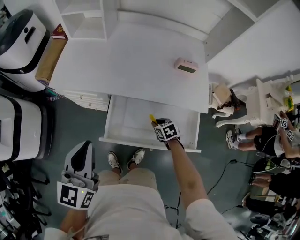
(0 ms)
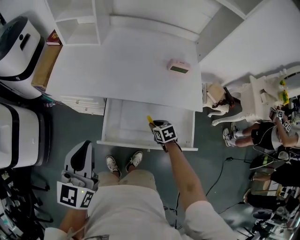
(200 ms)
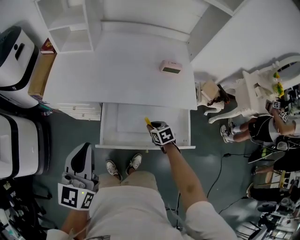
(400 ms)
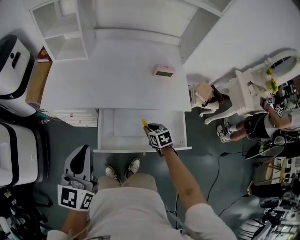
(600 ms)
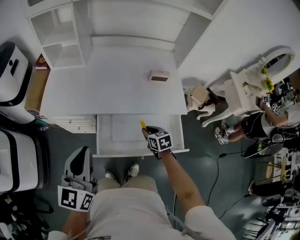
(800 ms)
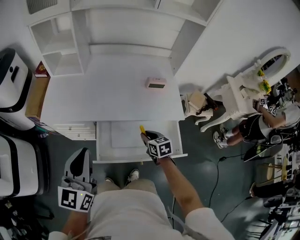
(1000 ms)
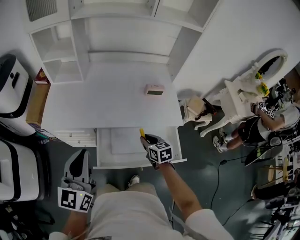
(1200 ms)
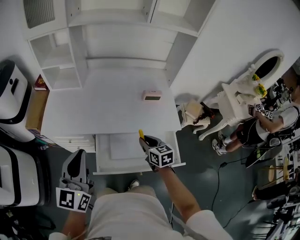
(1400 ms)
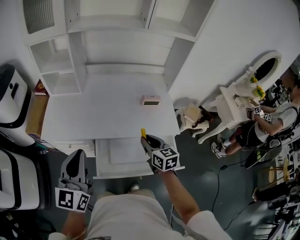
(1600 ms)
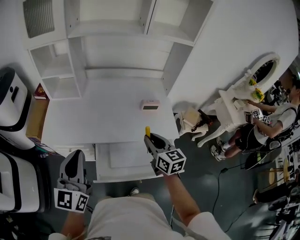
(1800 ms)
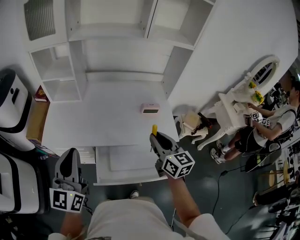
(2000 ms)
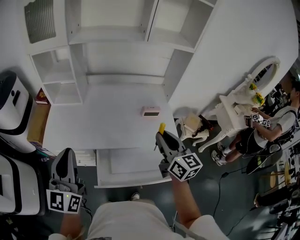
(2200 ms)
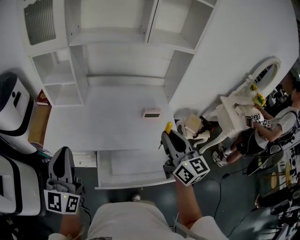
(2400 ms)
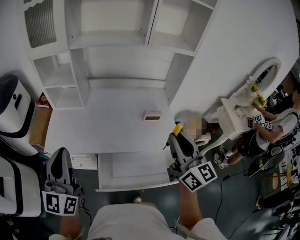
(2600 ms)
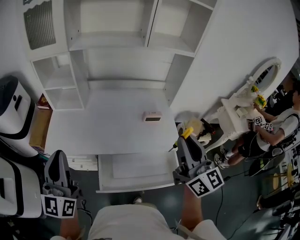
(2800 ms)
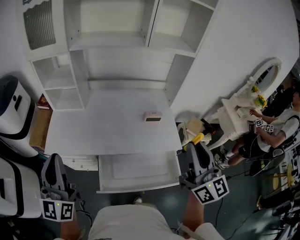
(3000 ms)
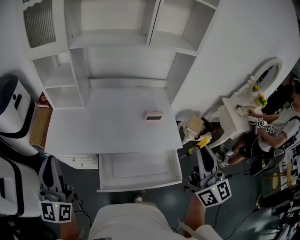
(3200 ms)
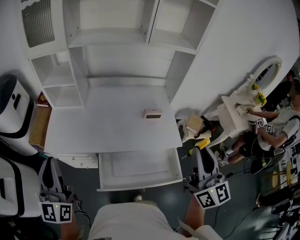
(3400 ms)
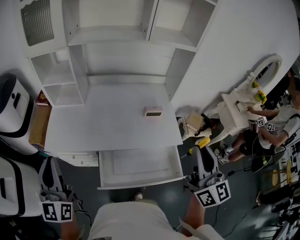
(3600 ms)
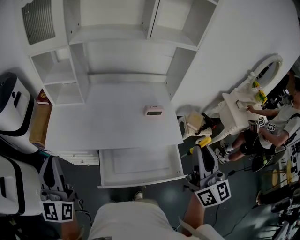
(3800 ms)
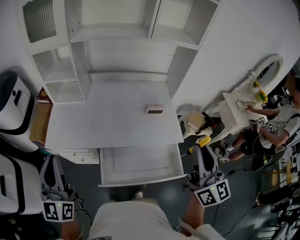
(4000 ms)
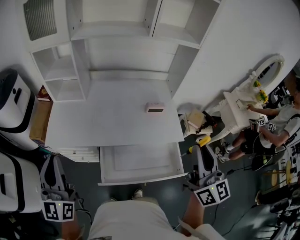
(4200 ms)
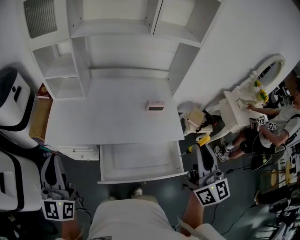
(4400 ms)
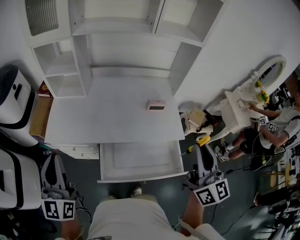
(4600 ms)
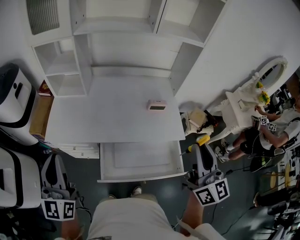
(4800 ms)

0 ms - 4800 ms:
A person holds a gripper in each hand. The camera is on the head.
0 ms - 1600 ms: The right gripper goes about 25 cm upward, and tips its fingers upward by roughly 40 degrees. Meanwhile the left gripper heads upward and forward, covering some 10 cm.
1600 ms - 3200 ms: The left gripper heads upward and to the left, covering roughly 10 cm. Meanwhile the right gripper moves upward, roughly 30 cm, and angles its fingers upward, by roughly 40 degrees.
3200 ms - 4800 ms: The grippers make only small movements.

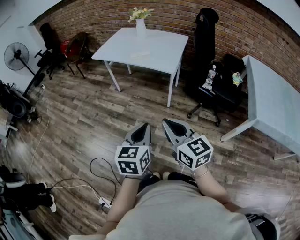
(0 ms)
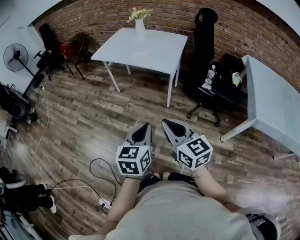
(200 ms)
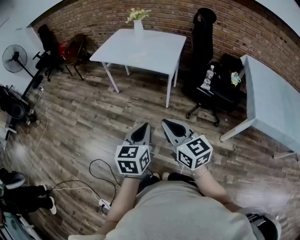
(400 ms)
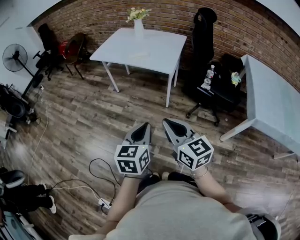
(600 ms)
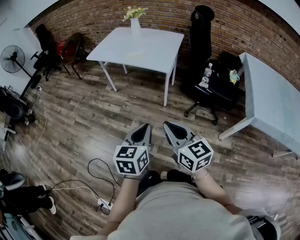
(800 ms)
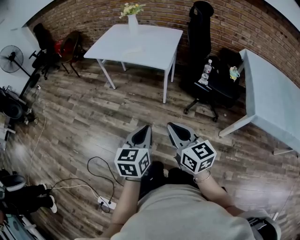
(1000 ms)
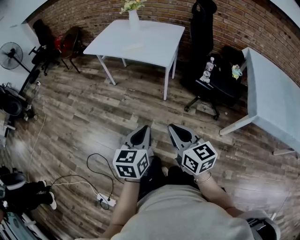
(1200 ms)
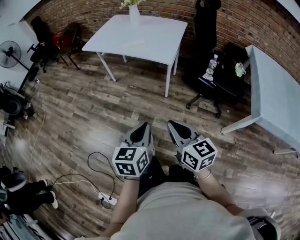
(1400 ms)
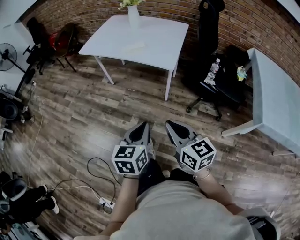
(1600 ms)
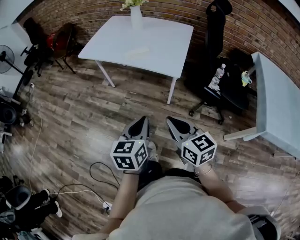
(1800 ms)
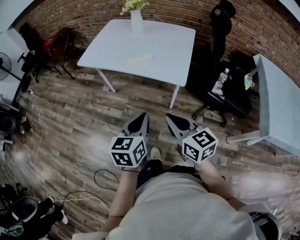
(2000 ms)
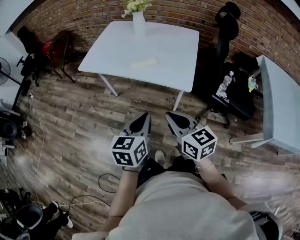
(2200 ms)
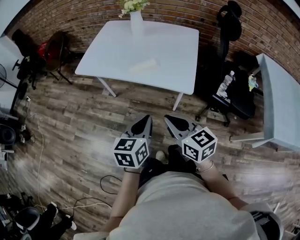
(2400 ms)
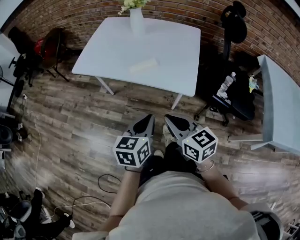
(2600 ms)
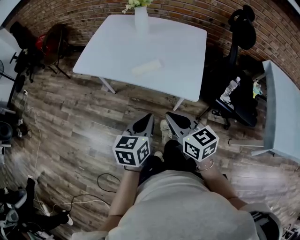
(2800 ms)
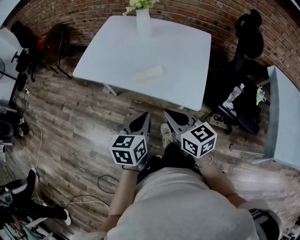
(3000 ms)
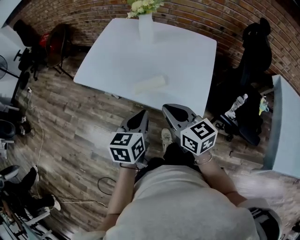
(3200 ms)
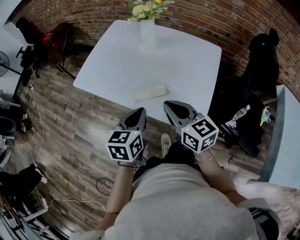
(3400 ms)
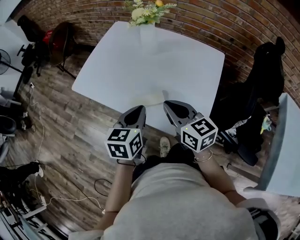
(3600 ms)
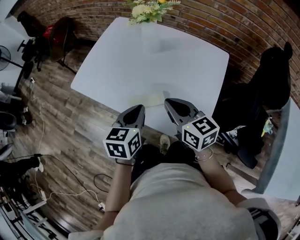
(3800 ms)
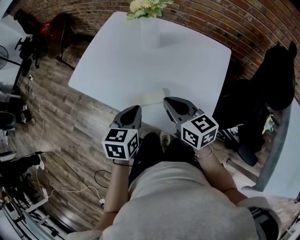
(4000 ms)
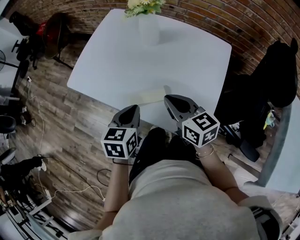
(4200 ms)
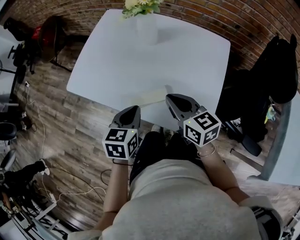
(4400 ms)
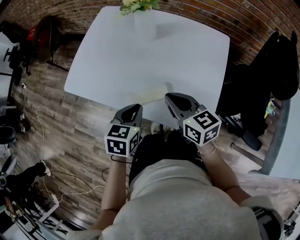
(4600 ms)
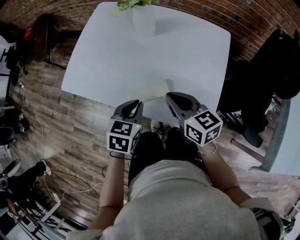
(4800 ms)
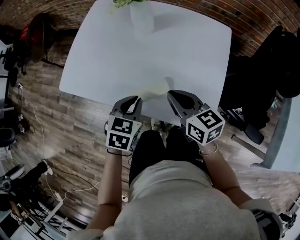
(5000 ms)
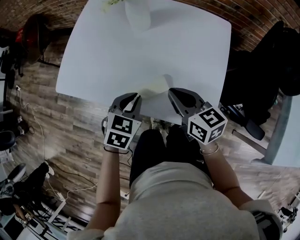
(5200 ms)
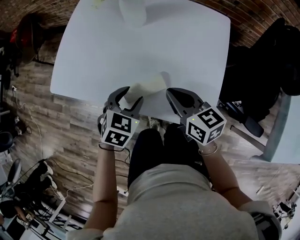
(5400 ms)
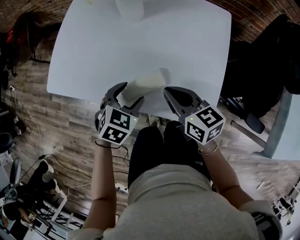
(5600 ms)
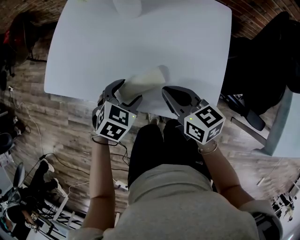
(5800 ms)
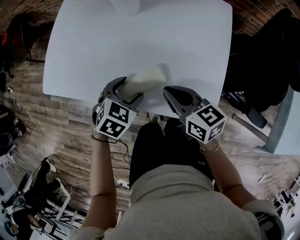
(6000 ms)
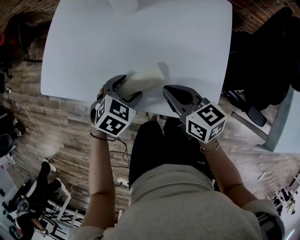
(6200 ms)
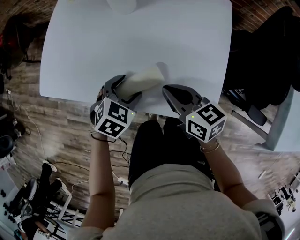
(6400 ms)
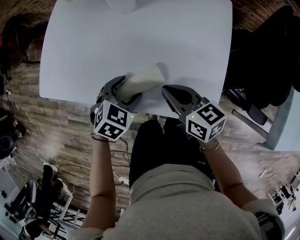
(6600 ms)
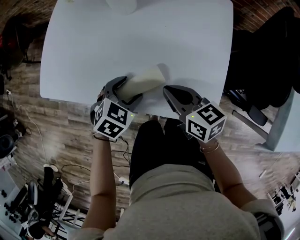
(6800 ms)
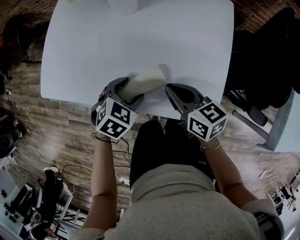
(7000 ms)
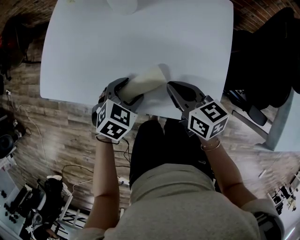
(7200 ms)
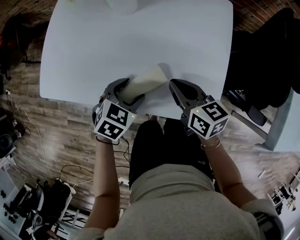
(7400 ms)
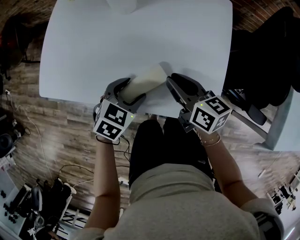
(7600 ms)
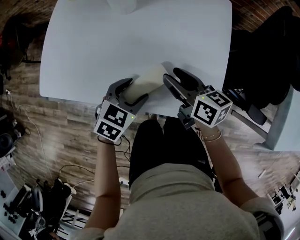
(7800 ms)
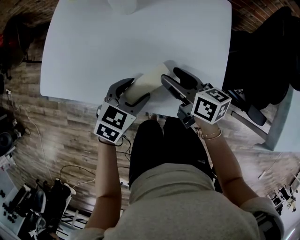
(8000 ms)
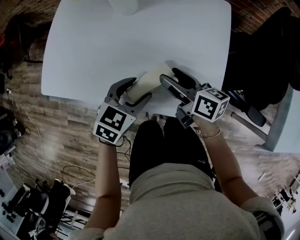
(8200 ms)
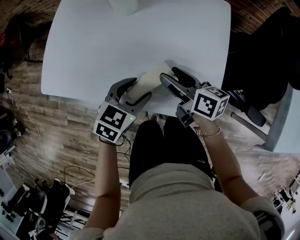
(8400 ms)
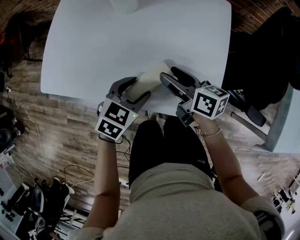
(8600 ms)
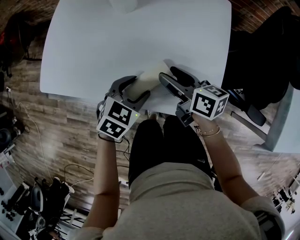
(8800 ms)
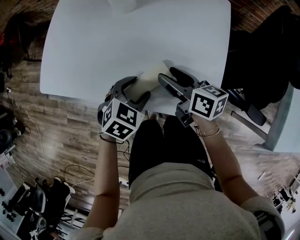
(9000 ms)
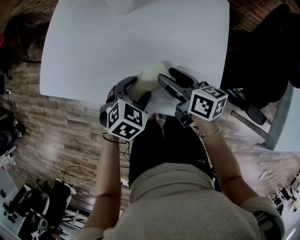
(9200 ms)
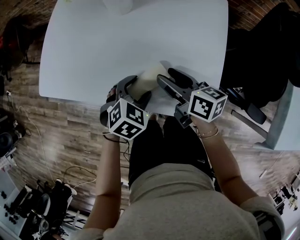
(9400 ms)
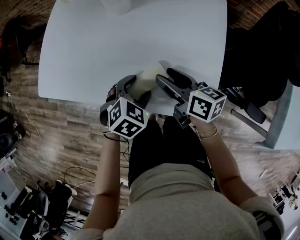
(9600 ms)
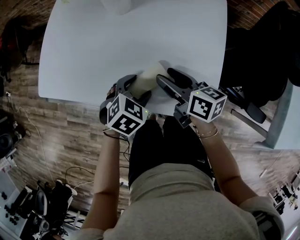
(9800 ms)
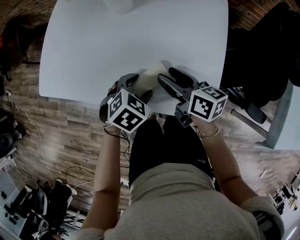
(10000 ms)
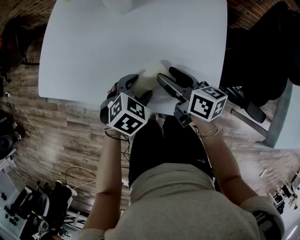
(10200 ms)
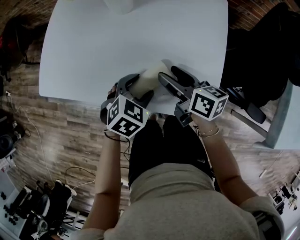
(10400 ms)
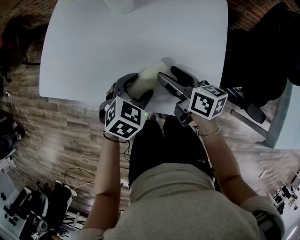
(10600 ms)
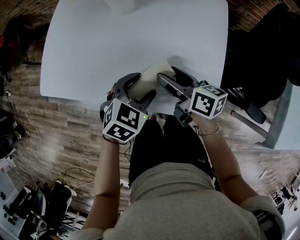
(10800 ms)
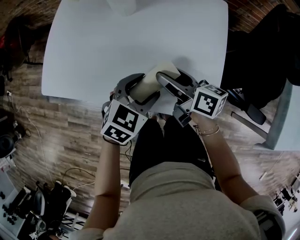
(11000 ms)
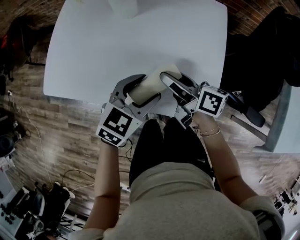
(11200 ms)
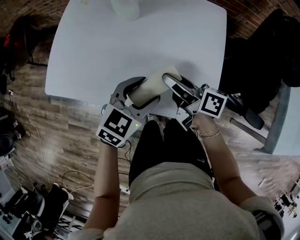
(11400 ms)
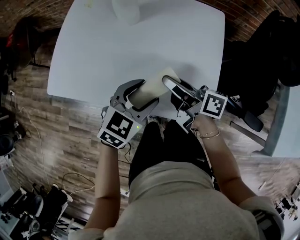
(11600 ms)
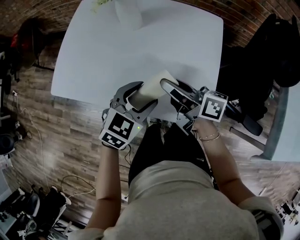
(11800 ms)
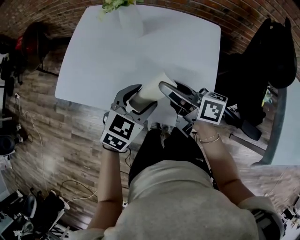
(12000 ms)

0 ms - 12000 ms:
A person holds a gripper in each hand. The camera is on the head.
0 ms - 1600 ms: Both grippers travel together forward and downward, roughly 15 cm.
1600 ms - 3000 ms: Both grippers travel together forward, some 40 cm.
3000 ms - 4400 ms: Both grippers move forward, some 20 cm.
4400 ms - 6000 ms: Both grippers move downward, approximately 10 cm. The left gripper turns by roughly 40 degrees, and opens its fingers.
6000 ms - 7600 ms: The grippers make only small movements.
7600 ms - 9000 ms: The right gripper opens.
9000 ms - 10400 ms: There are only small adjustments of the grippers.
10400 ms - 12000 ms: The grippers both shift upward by approximately 15 cm. The right gripper turns by approximately 20 degrees, and closes its fingers. The left gripper rotates roughly 20 degrees.

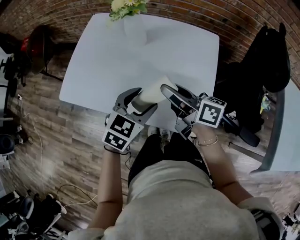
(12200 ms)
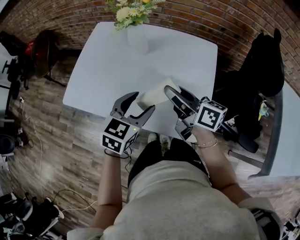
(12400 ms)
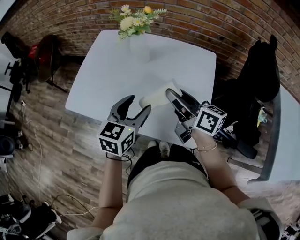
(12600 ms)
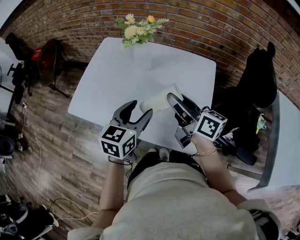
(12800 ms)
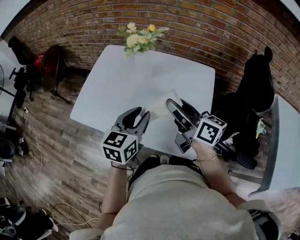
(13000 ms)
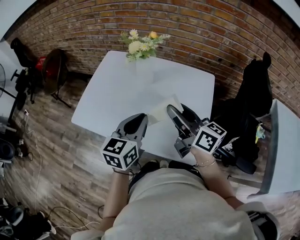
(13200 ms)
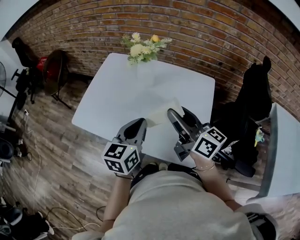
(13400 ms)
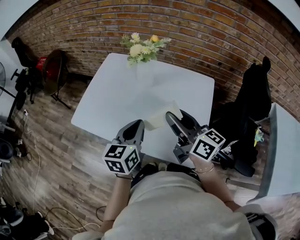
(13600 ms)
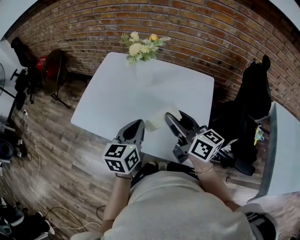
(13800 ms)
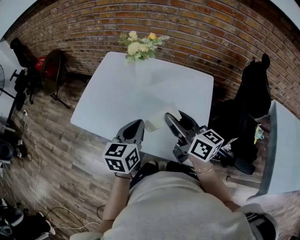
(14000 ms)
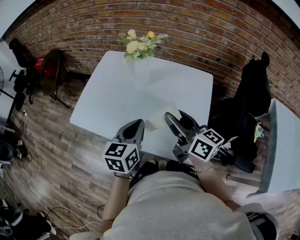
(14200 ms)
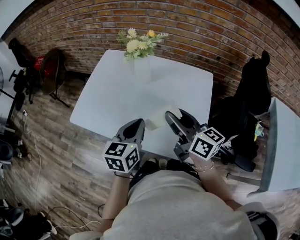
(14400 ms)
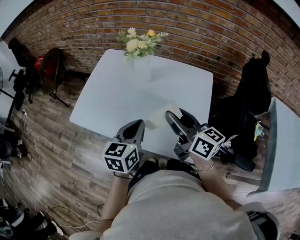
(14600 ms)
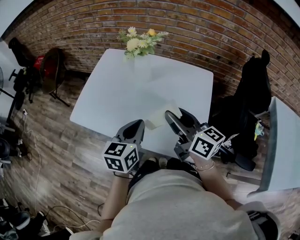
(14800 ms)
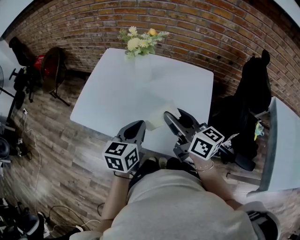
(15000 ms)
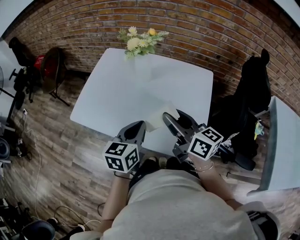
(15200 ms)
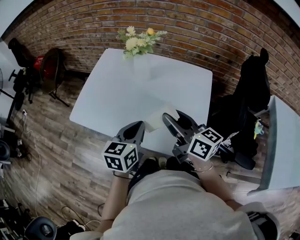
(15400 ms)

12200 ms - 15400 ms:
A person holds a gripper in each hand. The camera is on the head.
12200 ms - 13800 ms: The two grippers go approximately 5 cm upward. The right gripper rotates some 20 degrees, while the left gripper turns by some 40 degrees, and closes its fingers.
13800 ms - 15400 ms: The grippers make only small movements.

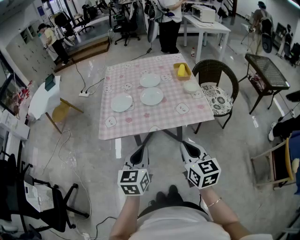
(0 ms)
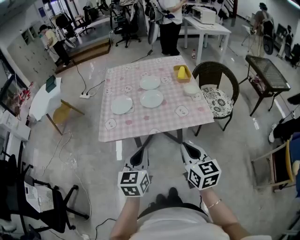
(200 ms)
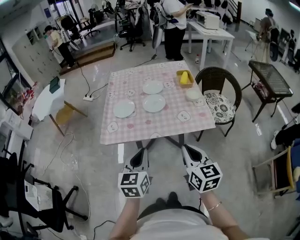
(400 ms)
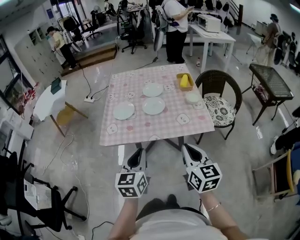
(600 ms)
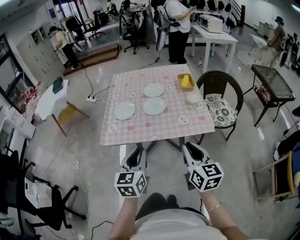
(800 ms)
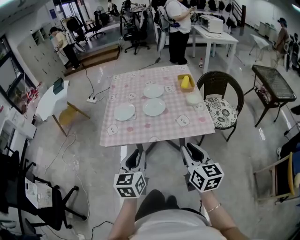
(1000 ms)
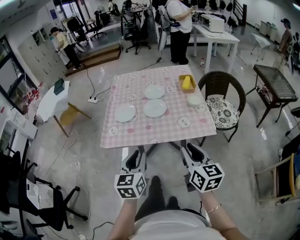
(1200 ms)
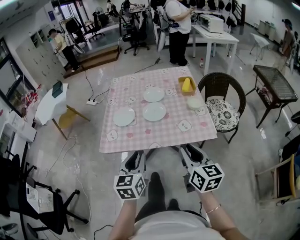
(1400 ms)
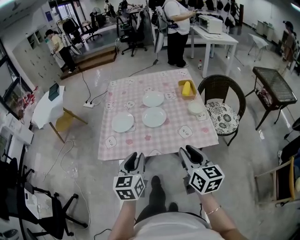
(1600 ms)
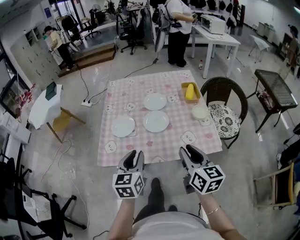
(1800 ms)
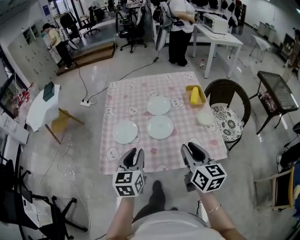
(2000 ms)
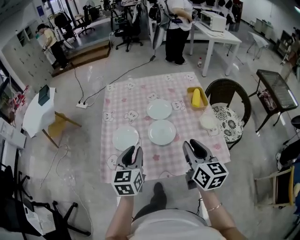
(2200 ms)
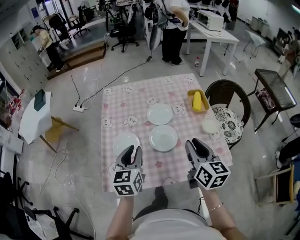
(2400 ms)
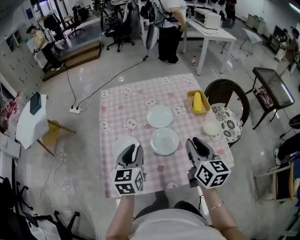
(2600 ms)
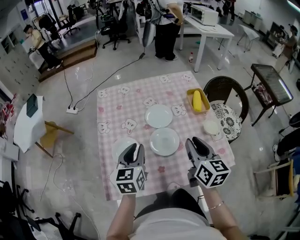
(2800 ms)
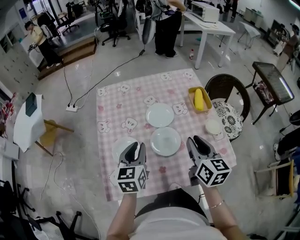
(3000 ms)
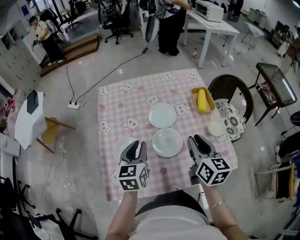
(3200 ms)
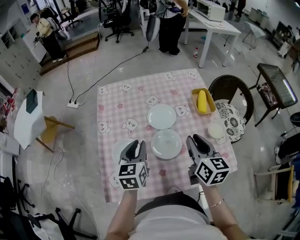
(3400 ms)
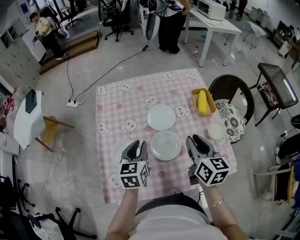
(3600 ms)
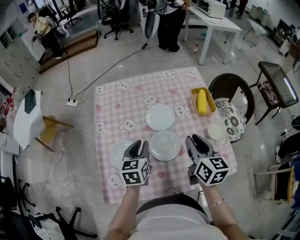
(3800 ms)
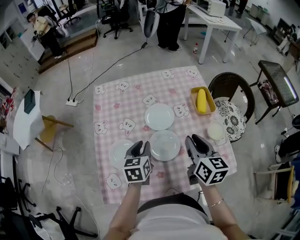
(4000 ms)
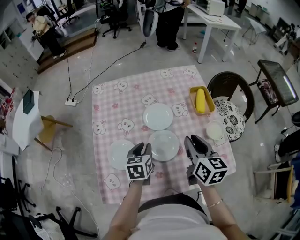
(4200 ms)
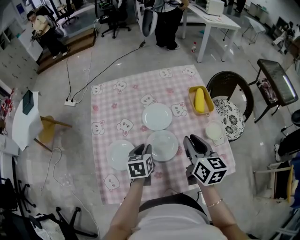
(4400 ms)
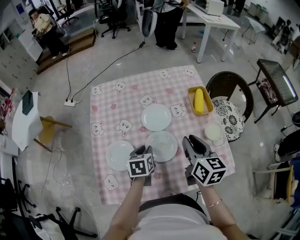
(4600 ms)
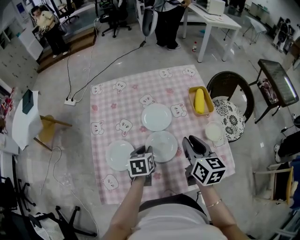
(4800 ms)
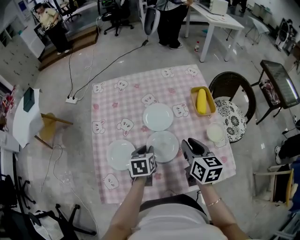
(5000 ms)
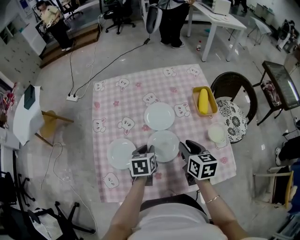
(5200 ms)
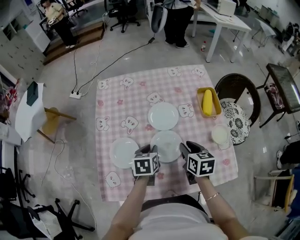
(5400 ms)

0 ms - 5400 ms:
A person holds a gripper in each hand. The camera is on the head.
0 ms - 1400 ms: The grippers both shift forward by about 5 cm. The right gripper opens up.
1400 ms - 2800 ms: The two grippers go roughly 35 cm forward.
2800 ms - 4000 ms: The left gripper heads downward and forward, covering roughly 10 cm. Meanwhile the right gripper shifts approximately 5 cm forward.
4000 ms - 5400 ms: The right gripper travels downward by some 10 cm, and swivels approximately 20 degrees. Meanwhile the left gripper moves downward, about 5 cm.
